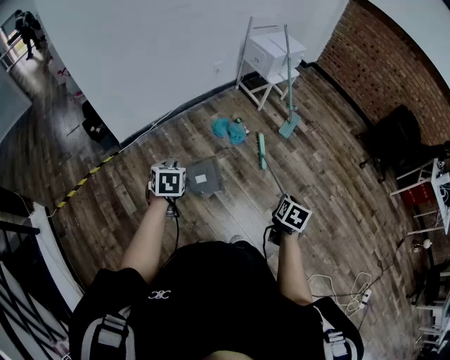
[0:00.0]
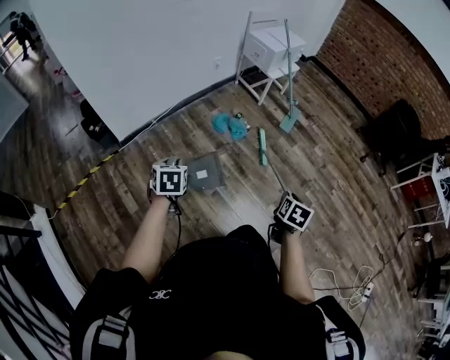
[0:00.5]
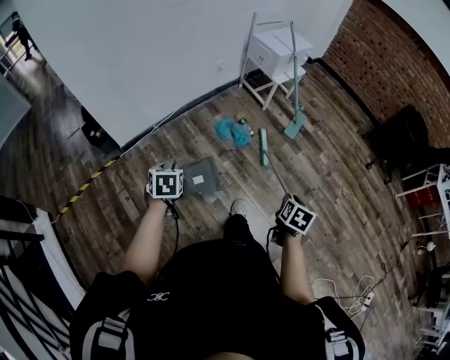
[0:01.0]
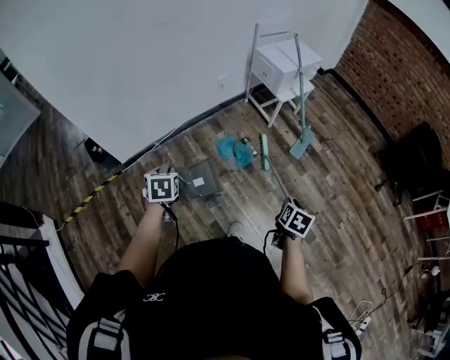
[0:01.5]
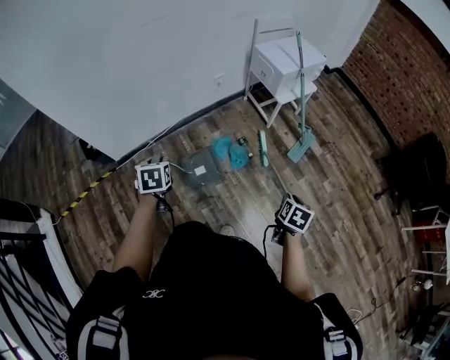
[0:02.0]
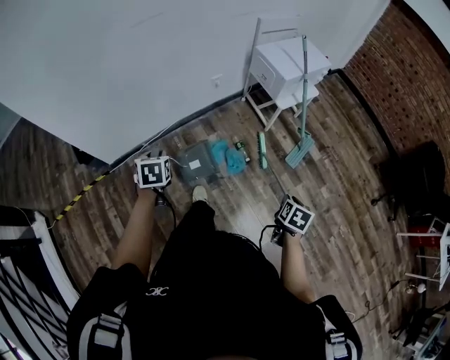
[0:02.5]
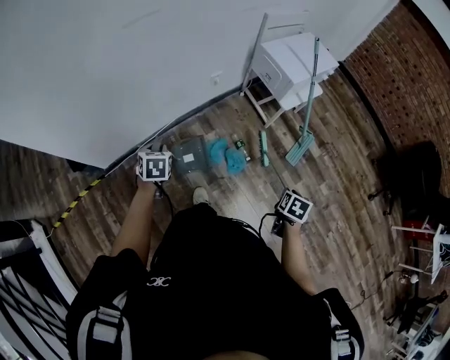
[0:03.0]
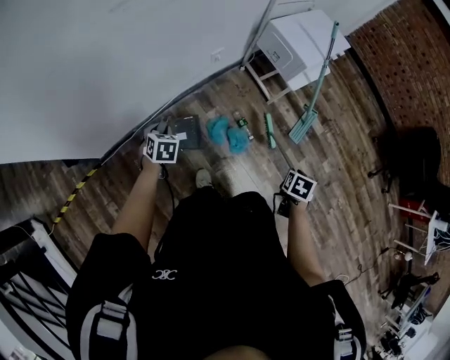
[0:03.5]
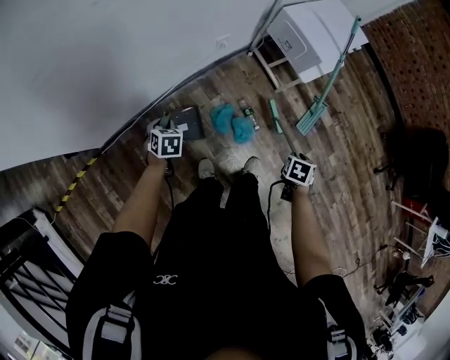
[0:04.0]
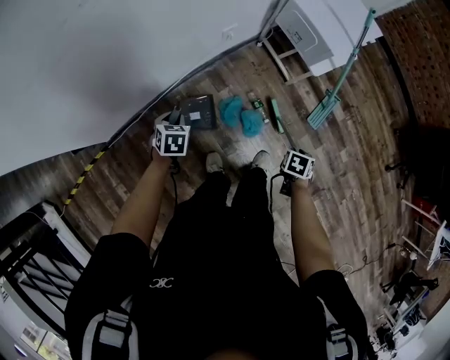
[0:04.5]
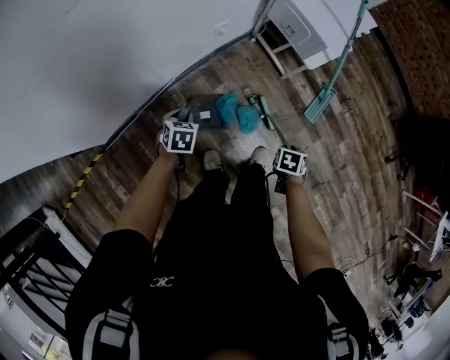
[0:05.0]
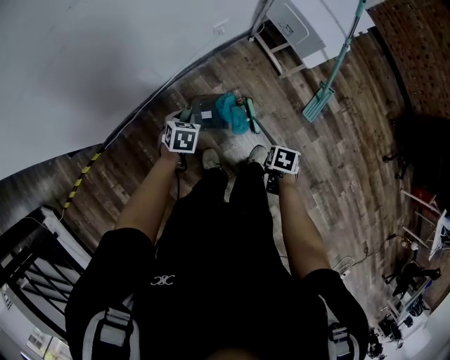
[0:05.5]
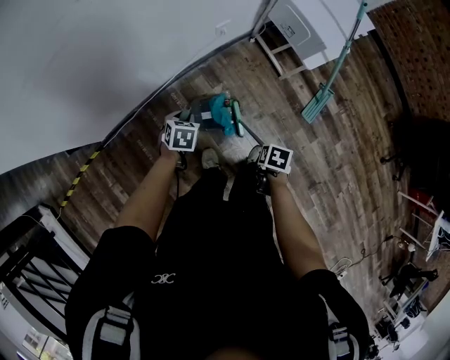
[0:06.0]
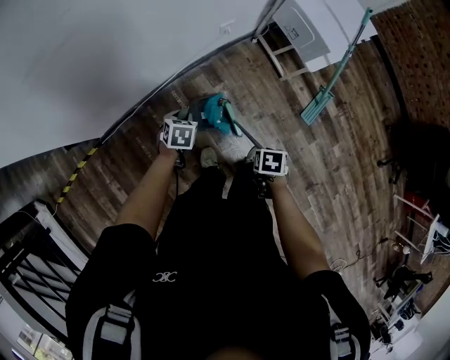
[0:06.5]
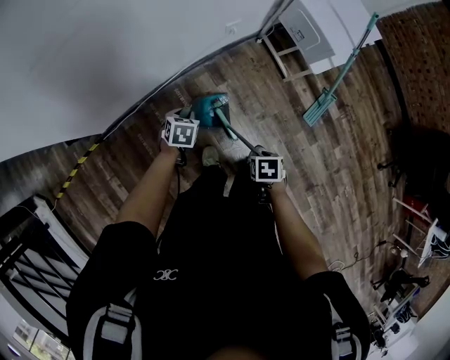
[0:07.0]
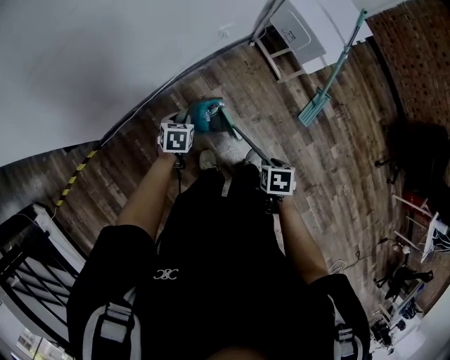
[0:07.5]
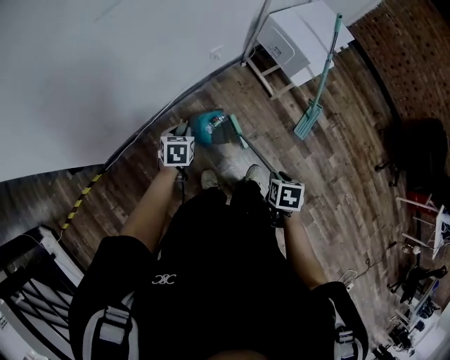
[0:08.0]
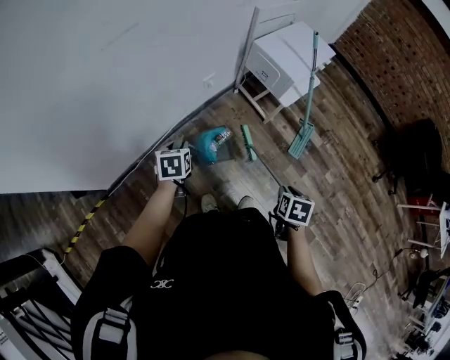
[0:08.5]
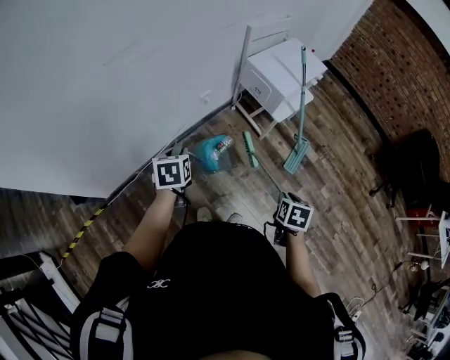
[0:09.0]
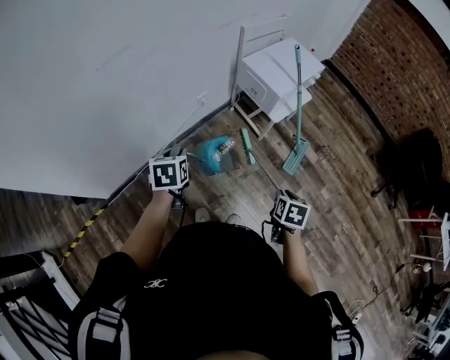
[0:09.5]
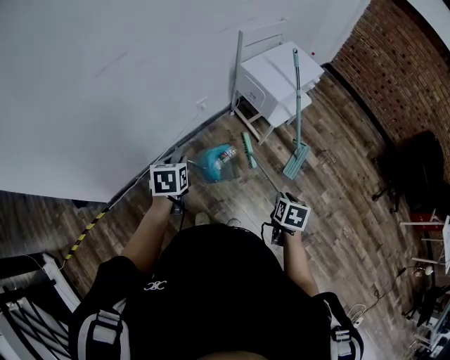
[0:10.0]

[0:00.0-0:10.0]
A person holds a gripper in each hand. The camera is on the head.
0:00.0 to 0:02.0: Both grippers travel together forward, about 35 cm.
0:02.0 to 0:04.0: The left gripper heads forward, downward and to the left, covering roughly 40 cm, while the right gripper shifts approximately 30 cm forward and downward, and rotates some 20 degrees.
0:04.0 to 0:06.0: The right gripper ends up approximately 15 cm from where it was. Meanwhile the left gripper changes place by about 10 cm.
0:06.0 to 0:08.0: The right gripper moves upward, about 10 cm; the left gripper heads upward, covering roughly 5 cm.
0:08.0 to 0:10.0: The right gripper moves to the right and upward, some 15 cm. Meanwhile the left gripper travels upward and to the right by approximately 20 cm.

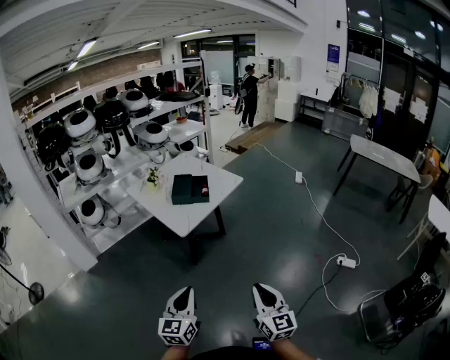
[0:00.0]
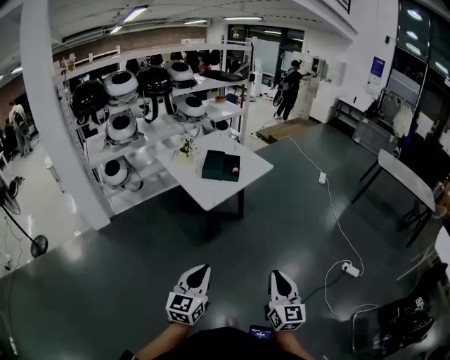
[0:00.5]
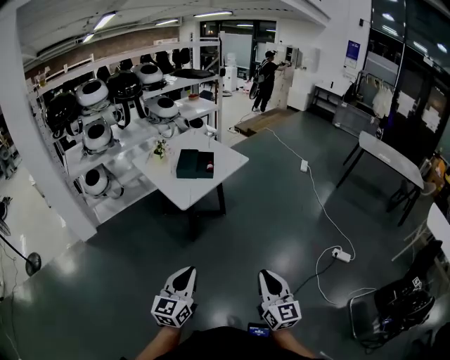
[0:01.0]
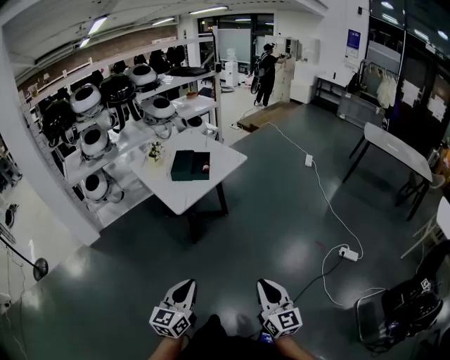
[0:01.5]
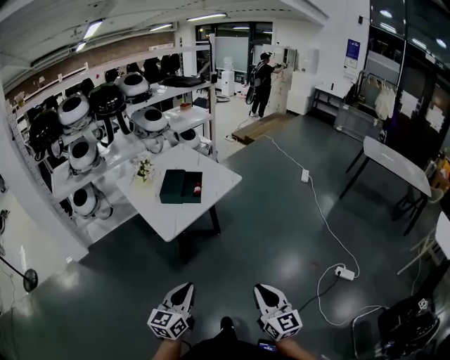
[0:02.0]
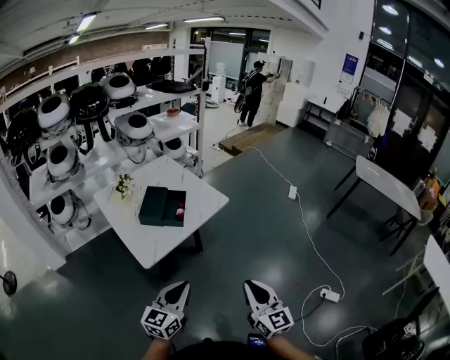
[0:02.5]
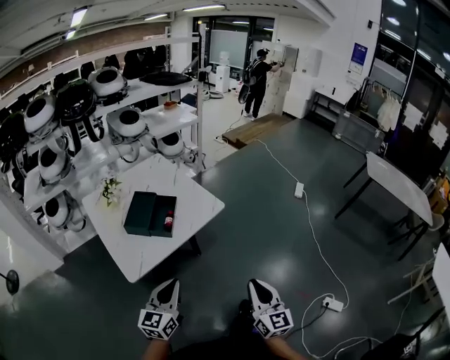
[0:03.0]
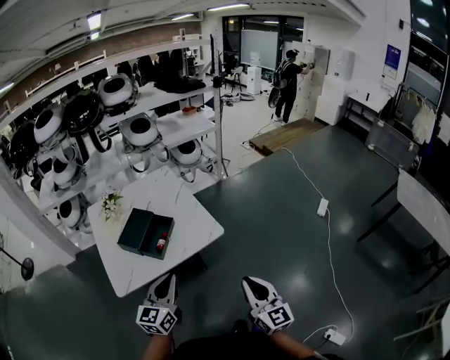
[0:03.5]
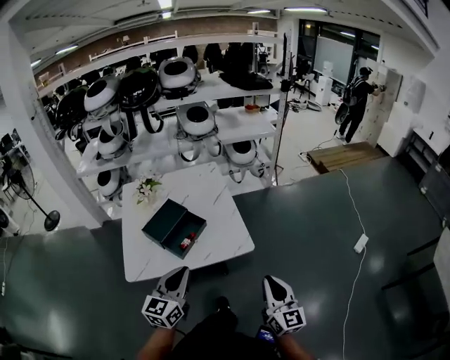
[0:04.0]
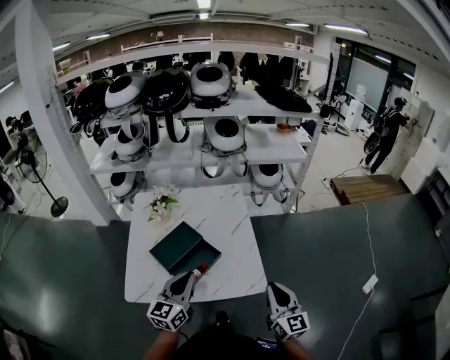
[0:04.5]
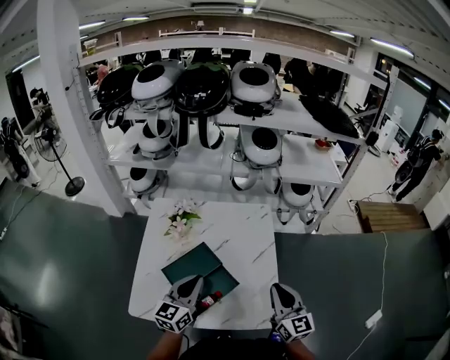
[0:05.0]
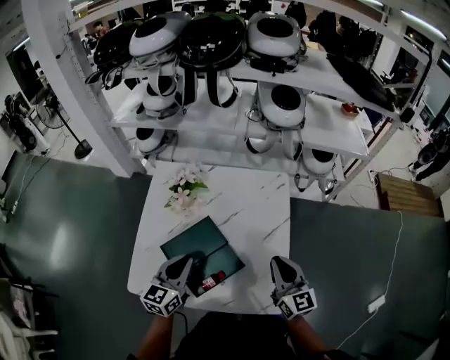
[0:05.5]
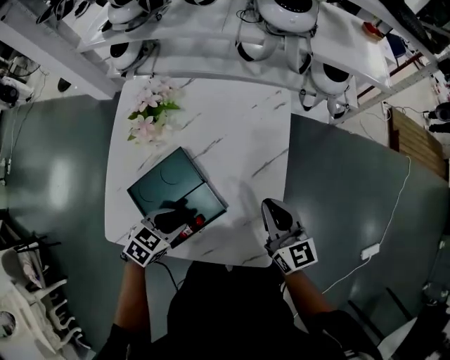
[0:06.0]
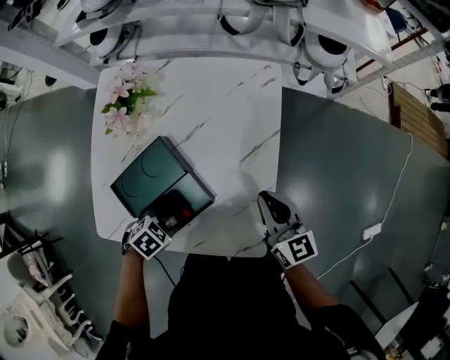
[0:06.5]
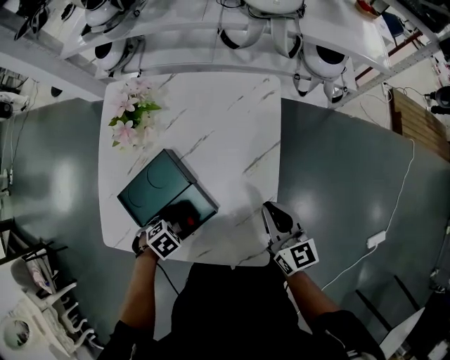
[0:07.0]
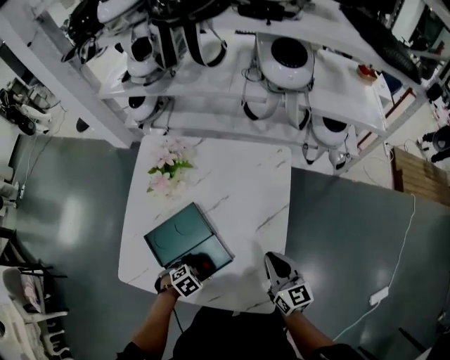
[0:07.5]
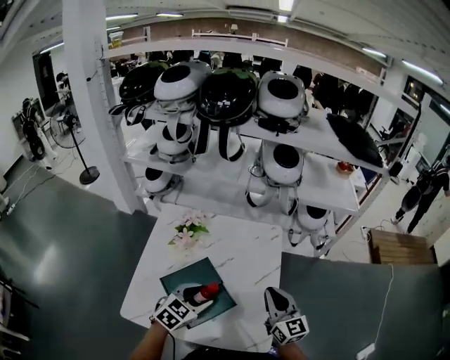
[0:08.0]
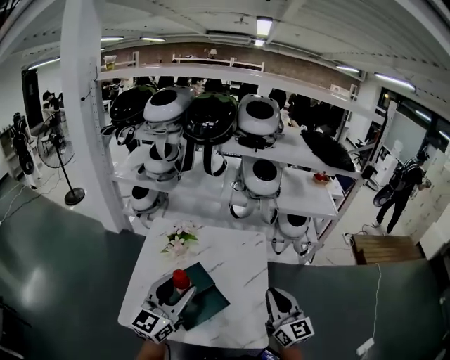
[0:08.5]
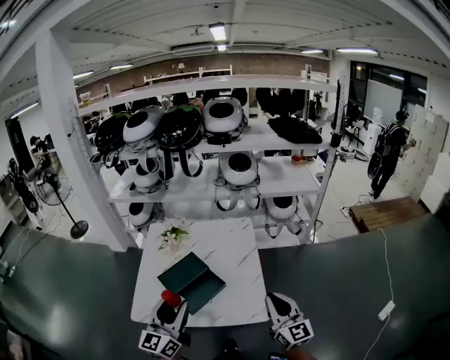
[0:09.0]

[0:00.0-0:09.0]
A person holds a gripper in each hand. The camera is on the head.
0:00.0 to 0:02.0: The two grippers go some 15 cm forward and to the right.
0:02.0 to 0:04.5: The pair of grippers is taken some 60 cm. The left gripper swivels some 40 degrees. The right gripper rotates some 30 degrees.
0:04.5 to 0:07.0: The left gripper is displaced downward by about 30 cm, angles its fingers downward, by roughly 70 degrees, and opens, while the right gripper ends up roughly 30 cm from where it was, and swivels roughly 30 degrees.
0:07.0 to 0:09.0: The left gripper is displaced upward by about 40 cm, and points its fingers approximately 90 degrees further upward. Meanwhile the right gripper changes place by about 30 cm, and rotates approximately 30 degrees.

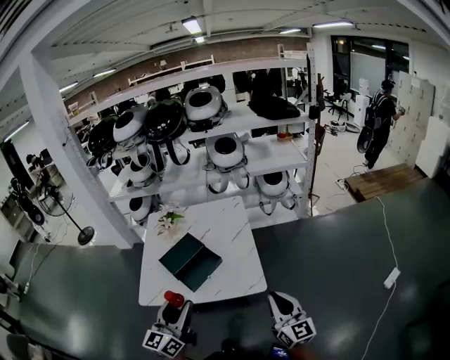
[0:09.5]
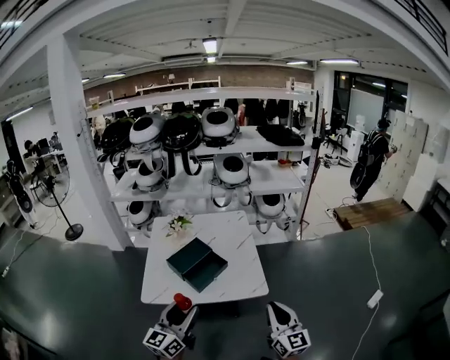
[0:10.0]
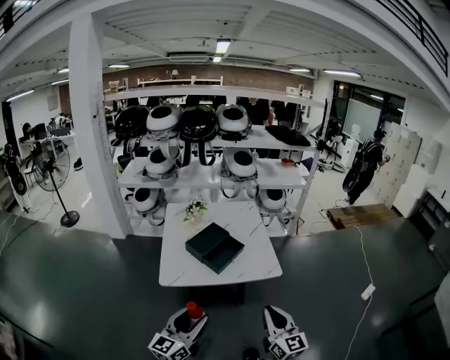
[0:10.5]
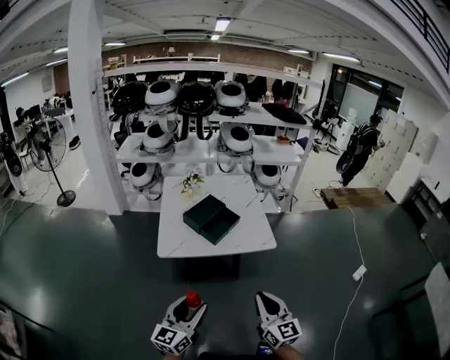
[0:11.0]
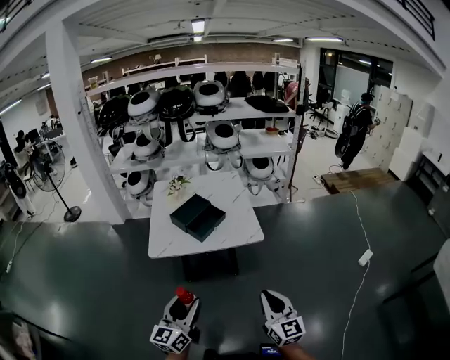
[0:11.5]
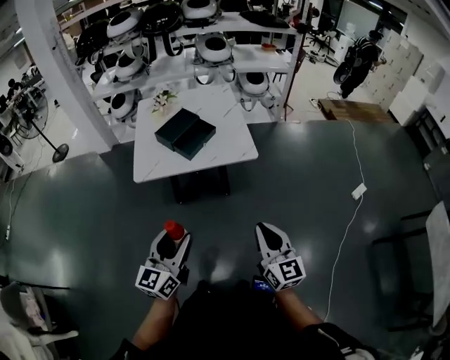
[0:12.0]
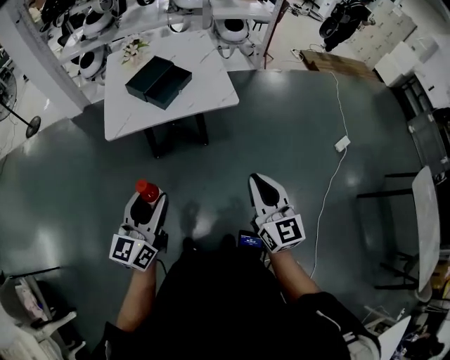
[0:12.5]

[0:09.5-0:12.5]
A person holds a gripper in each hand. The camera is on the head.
0:09.5 to 0:11.0: The grippers both shift backward and to the left by roughly 30 cm.
0:11.0 to 0:12.5: The right gripper shifts approximately 15 cm to the right; the left gripper heads to the right, covering approximately 5 cm.

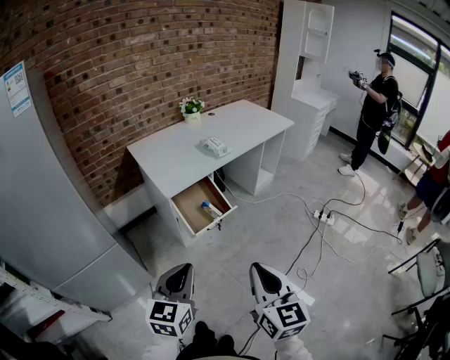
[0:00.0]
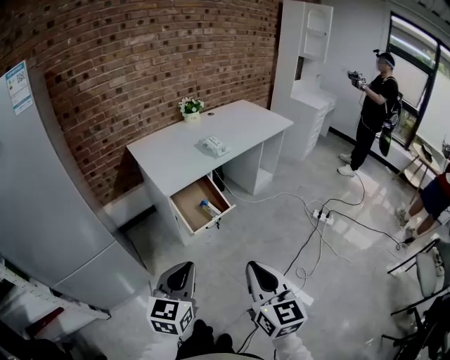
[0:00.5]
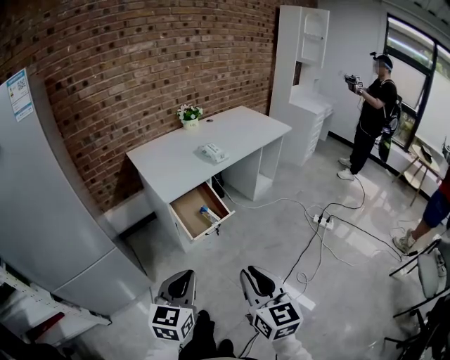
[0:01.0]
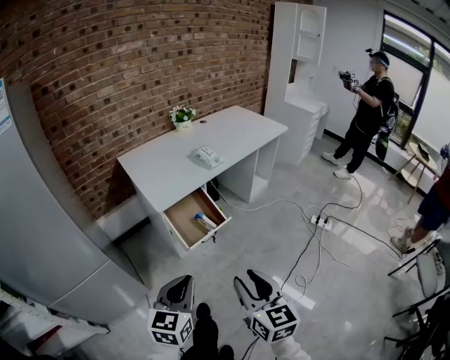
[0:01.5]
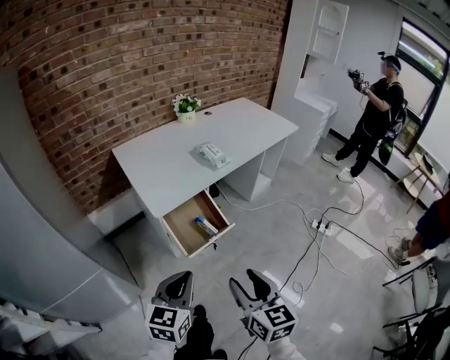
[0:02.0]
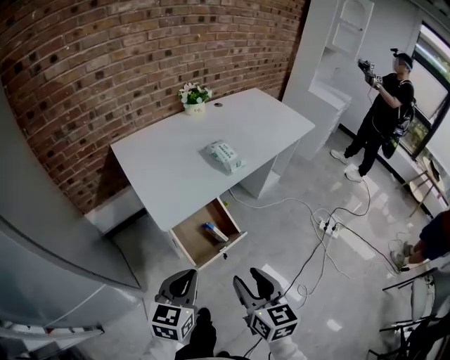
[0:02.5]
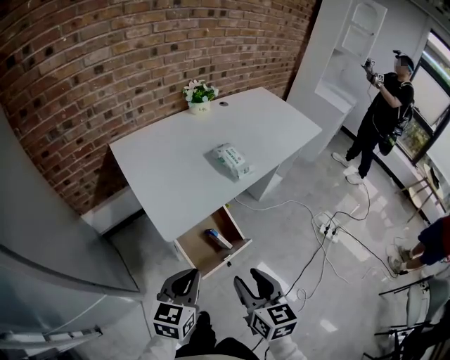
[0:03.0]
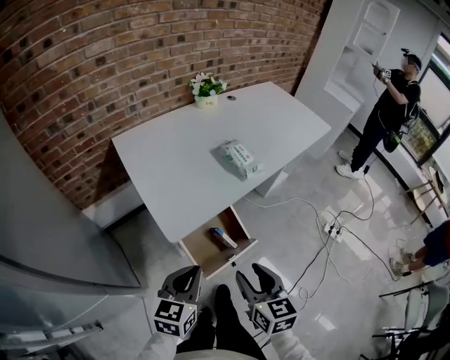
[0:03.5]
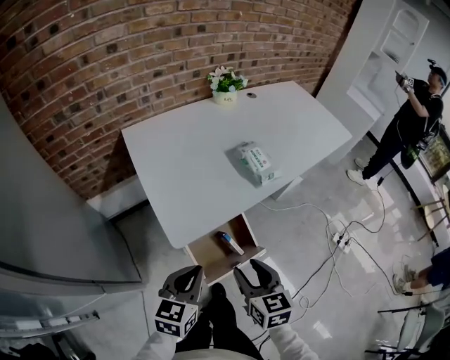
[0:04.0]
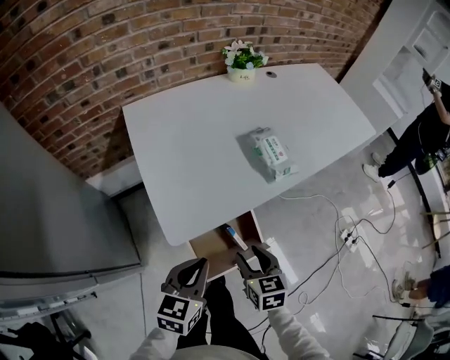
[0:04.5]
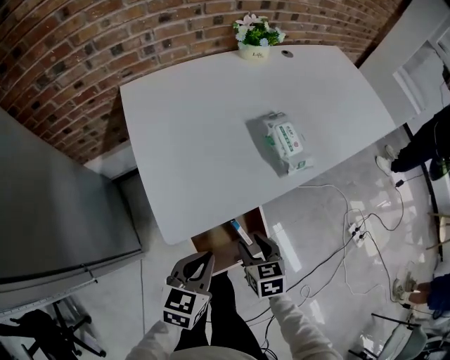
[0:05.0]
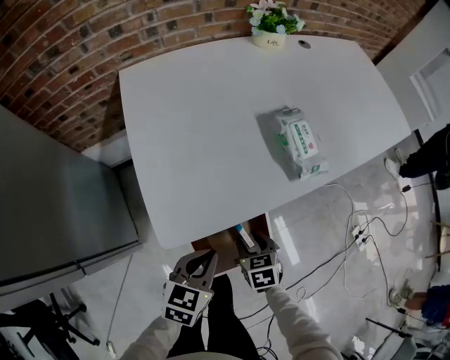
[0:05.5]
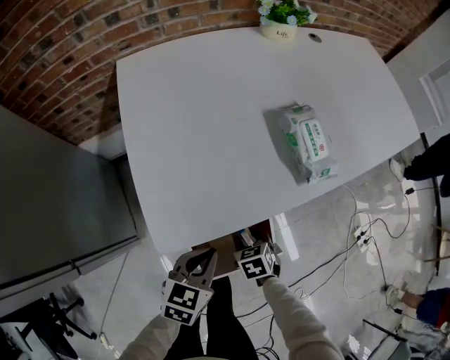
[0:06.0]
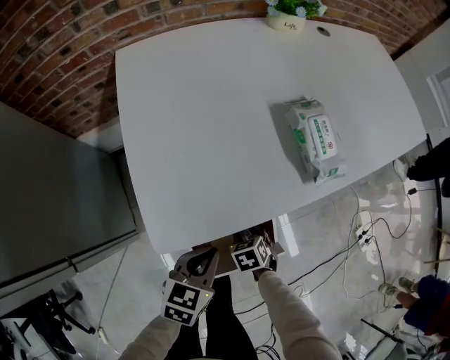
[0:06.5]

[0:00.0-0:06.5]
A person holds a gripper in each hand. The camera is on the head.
0:00.0 to 0:02.0: The right gripper is displaced forward and downward by some 20 cm, and opens up; the left gripper travels forward by approximately 15 cm.
0:02.0 to 0:04.5: The right gripper is displaced forward and downward by roughly 40 cm, and swivels roughly 30 degrees. Meanwhile the left gripper is displaced forward by some 30 cm.
0:04.5 to 0:06.5: The right gripper moves downward, approximately 25 cm, and points its fingers about 30 degrees further downward. Meanwhile the left gripper is displaced downward by some 15 cm.
